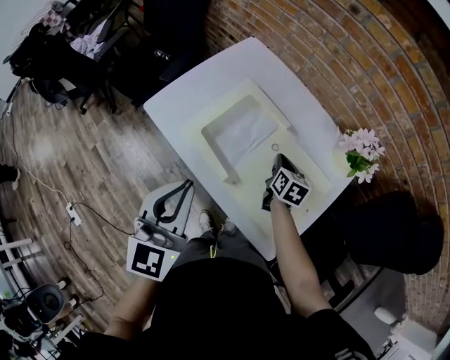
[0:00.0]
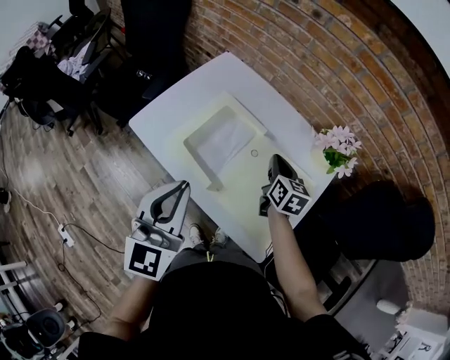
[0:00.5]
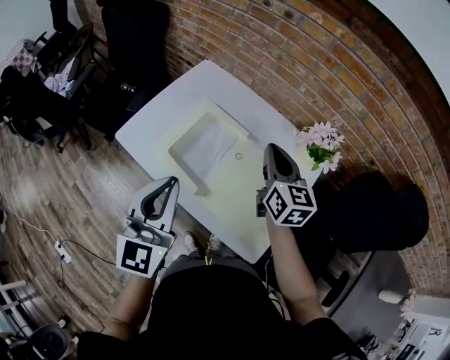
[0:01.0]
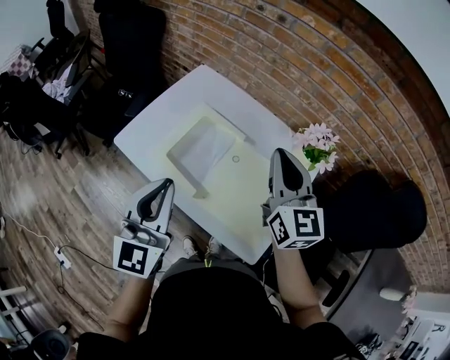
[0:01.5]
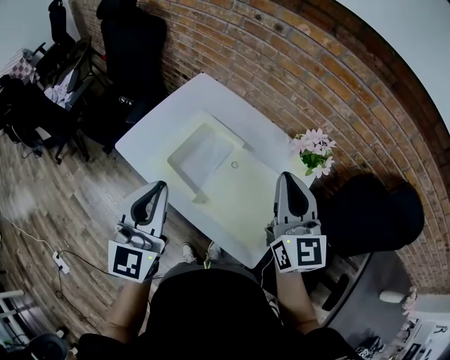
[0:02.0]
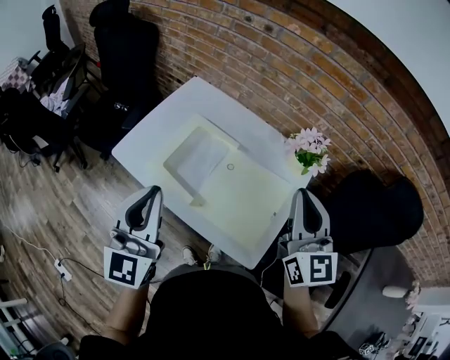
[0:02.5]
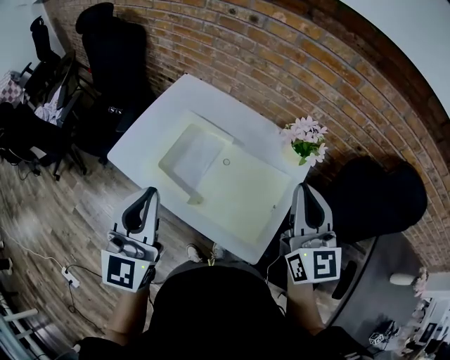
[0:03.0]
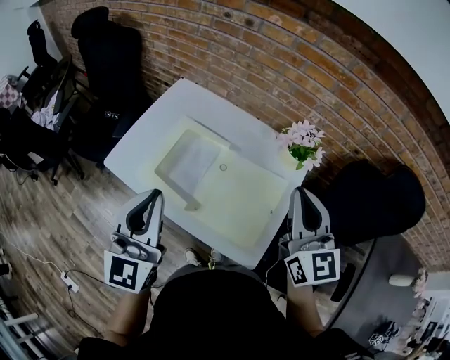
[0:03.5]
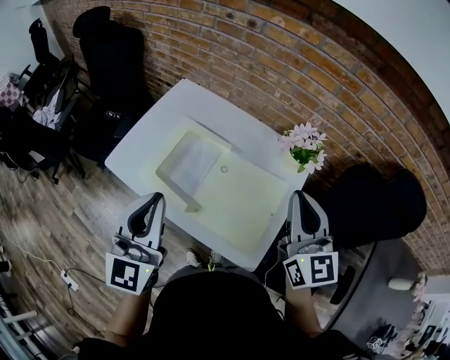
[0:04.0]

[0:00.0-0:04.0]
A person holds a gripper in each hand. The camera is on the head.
0:00.0 to 0:02.0: The left gripper travels upward by about 5 cm, while the right gripper goes some 35 cm upward, and angles its fingers upward, by some 40 degrees.
0:02.0 to 0:04.0: The right gripper heads to the right, covering approximately 5 cm.

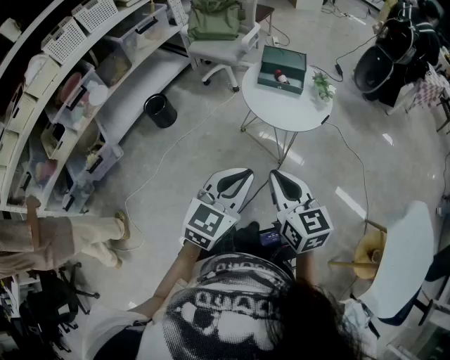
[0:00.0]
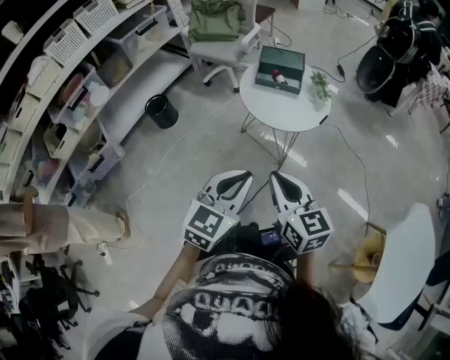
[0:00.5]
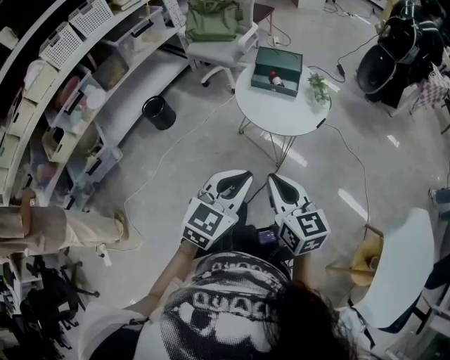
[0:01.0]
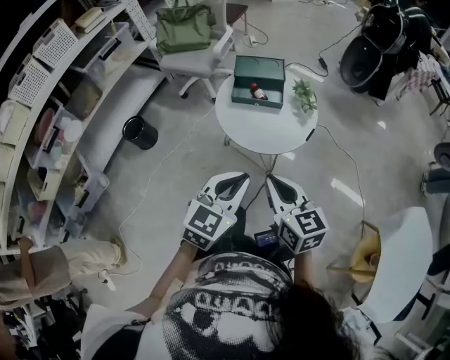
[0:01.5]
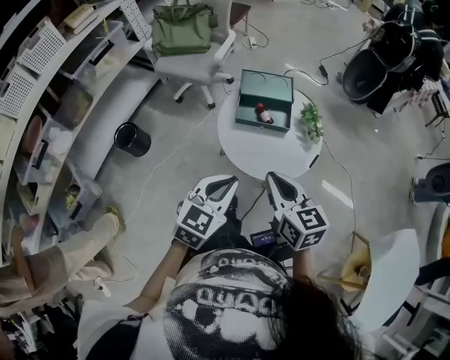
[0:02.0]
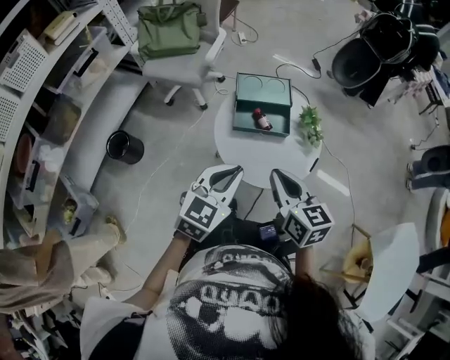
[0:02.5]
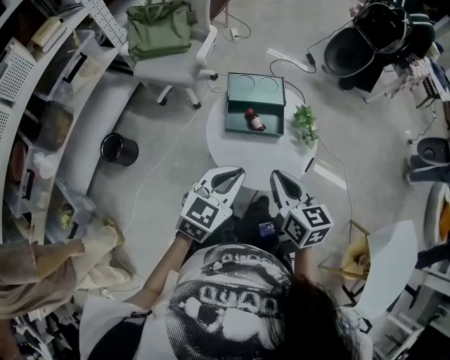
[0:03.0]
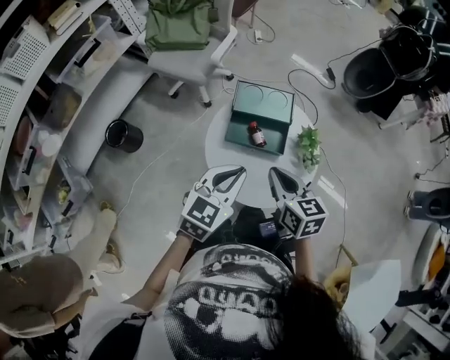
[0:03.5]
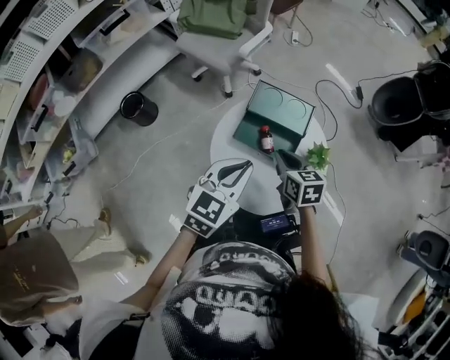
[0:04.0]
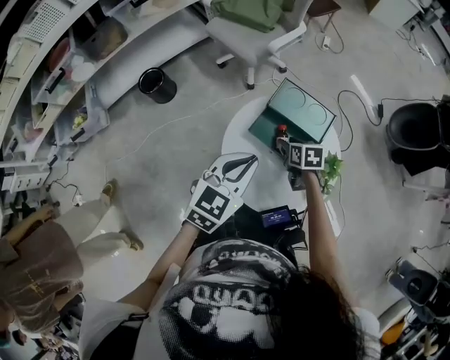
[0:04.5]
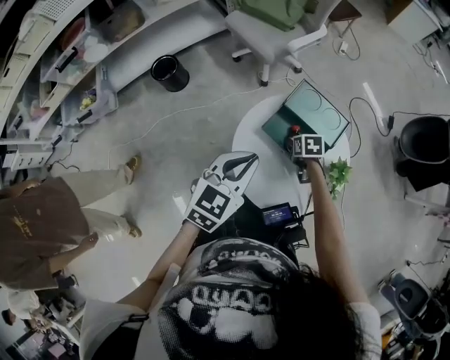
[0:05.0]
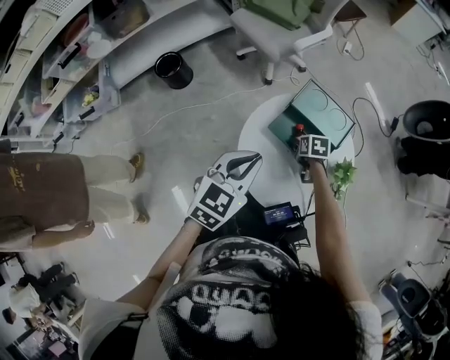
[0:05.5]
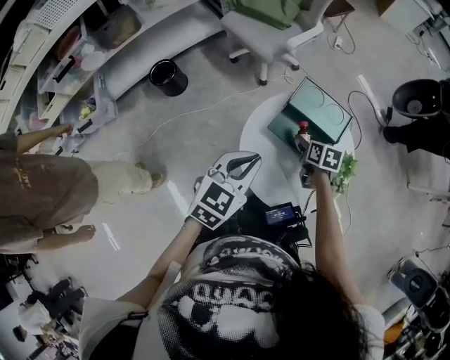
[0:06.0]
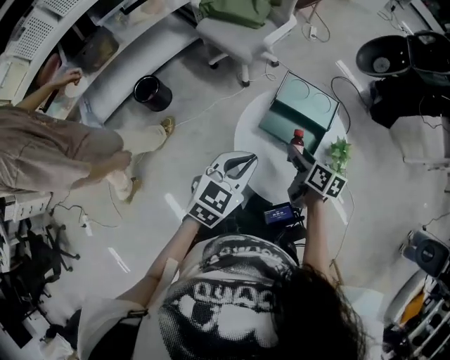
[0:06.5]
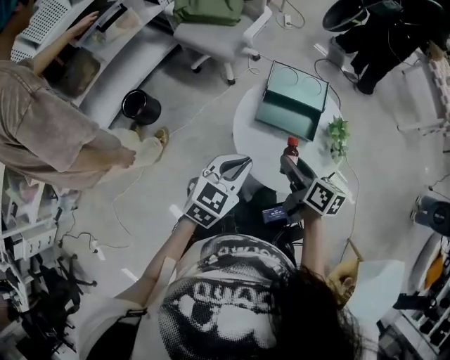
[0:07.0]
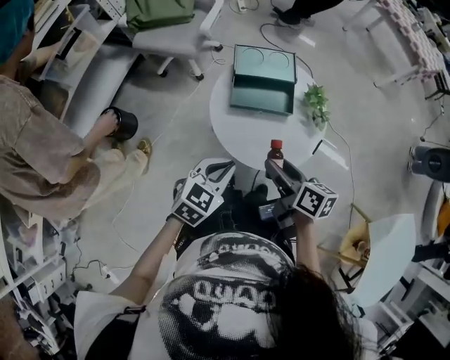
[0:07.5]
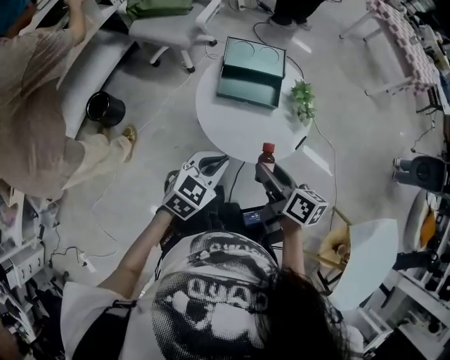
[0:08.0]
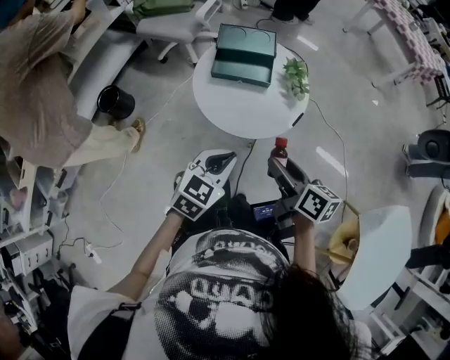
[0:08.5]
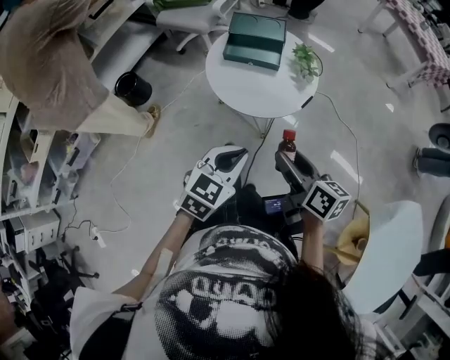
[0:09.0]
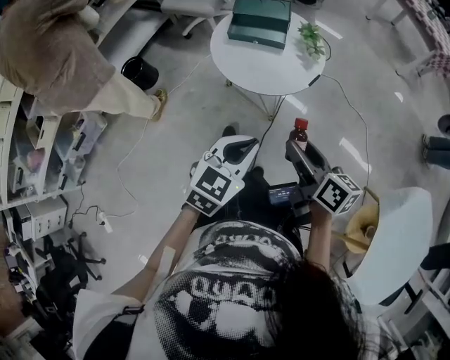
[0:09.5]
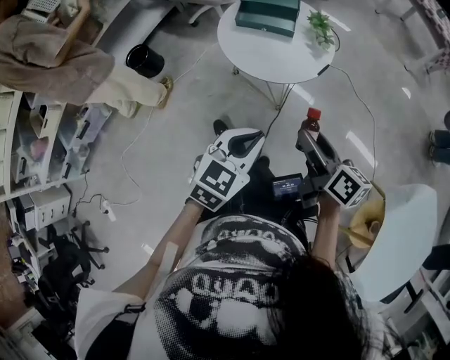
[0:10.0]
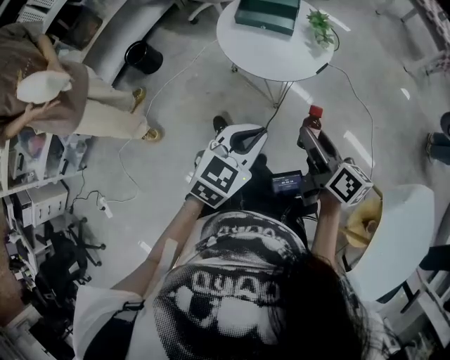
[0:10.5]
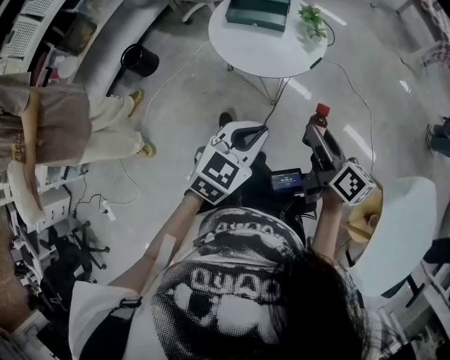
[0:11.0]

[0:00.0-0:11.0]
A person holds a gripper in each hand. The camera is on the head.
0:00.0 to 0:02.0: The grippers both shift forward by approximately 25 cm.
0:02.0 to 0:03.5: The grippers both shift forward by approximately 15 cm.
0:03.5 to 0:05.5: The right gripper goes some 25 cm downward, angles its fingers downward, by about 40 degrees, and opens. The left gripper turns by approximately 30 degrees.
0:05.5 to 0:07.5: The right gripper moves approximately 30 cm, and tilts its fingers approximately 40 degrees upward. Meanwhile the left gripper moves about 10 cm, and rotates about 40 degrees.
0:07.5 to 0:09.0: Both grippers travel together backward and to the right, about 25 cm.
0:09.0 to 0:11.0: The left gripper heads backward, covering some 5 cm; the right gripper goes approximately 5 cm to the right.

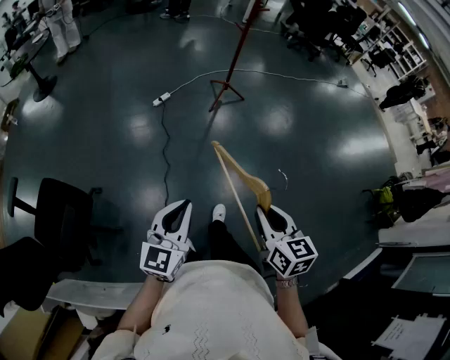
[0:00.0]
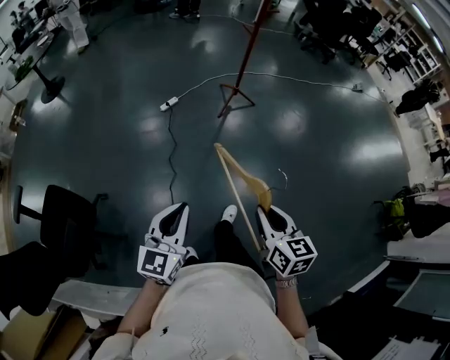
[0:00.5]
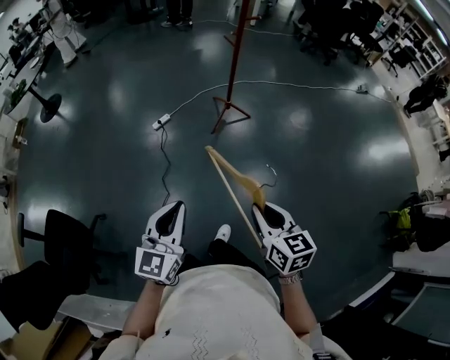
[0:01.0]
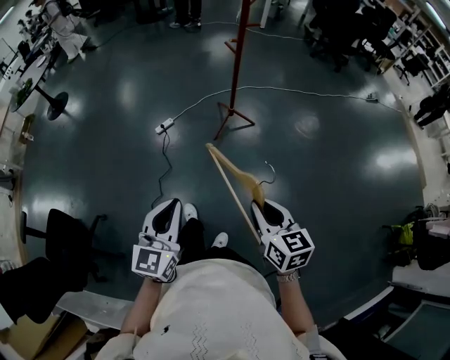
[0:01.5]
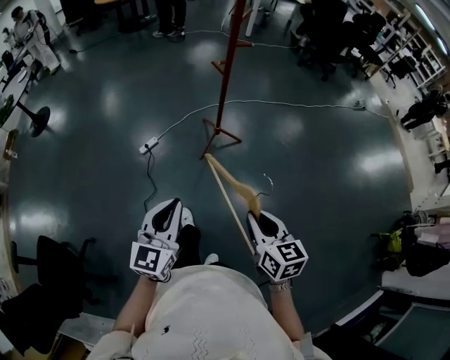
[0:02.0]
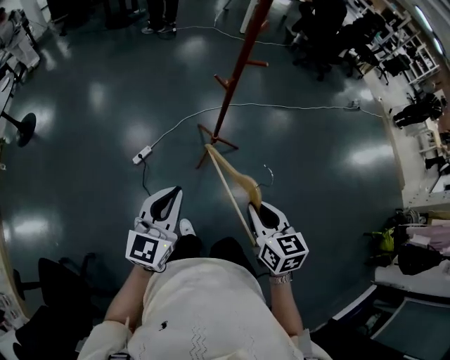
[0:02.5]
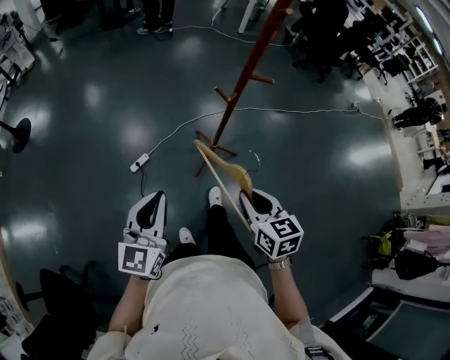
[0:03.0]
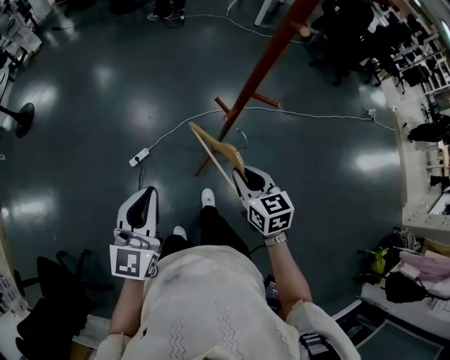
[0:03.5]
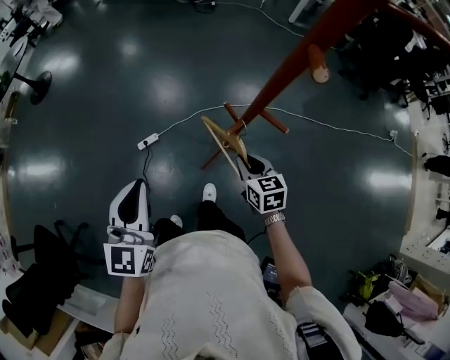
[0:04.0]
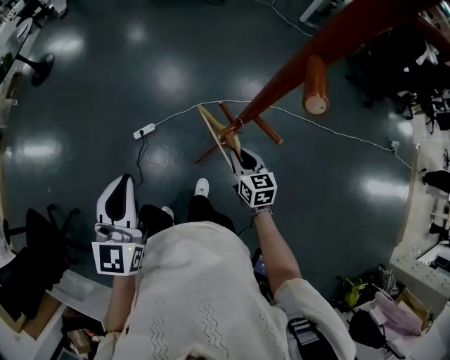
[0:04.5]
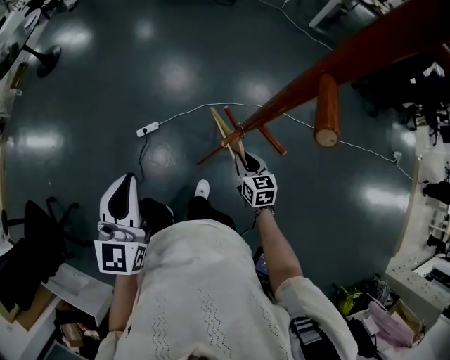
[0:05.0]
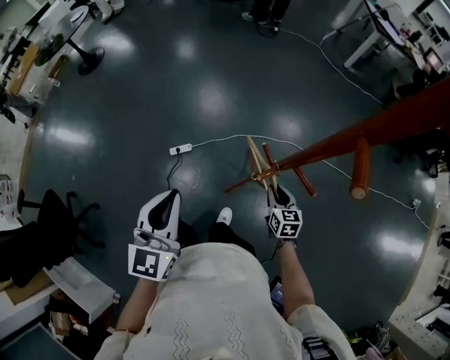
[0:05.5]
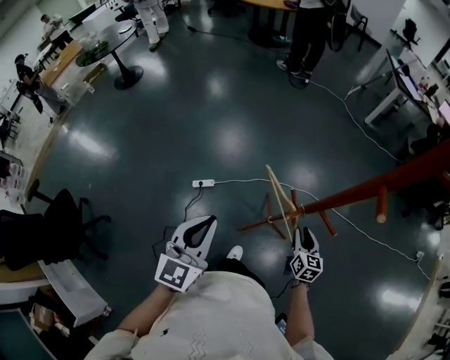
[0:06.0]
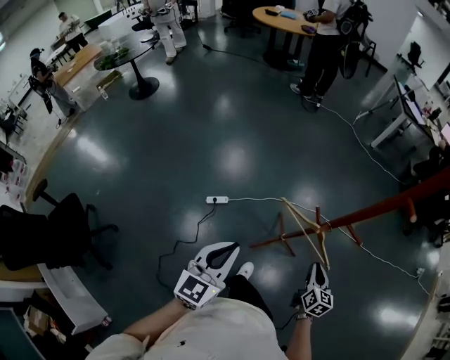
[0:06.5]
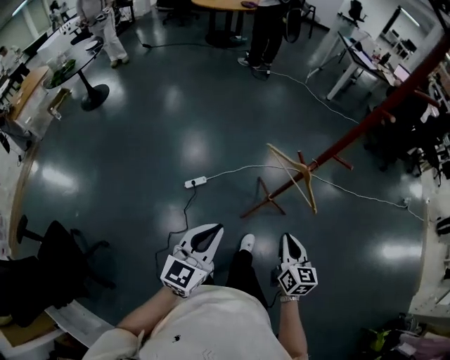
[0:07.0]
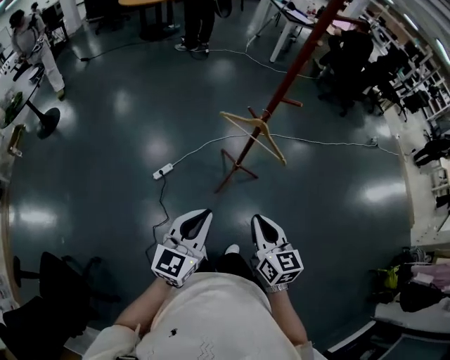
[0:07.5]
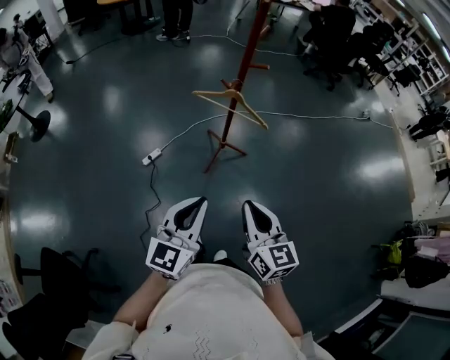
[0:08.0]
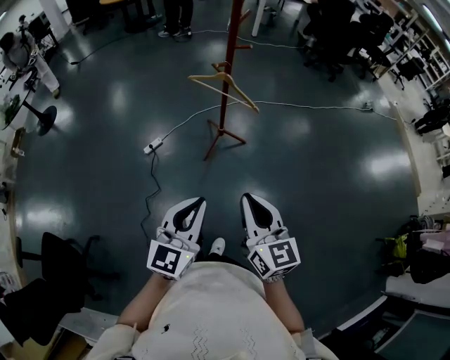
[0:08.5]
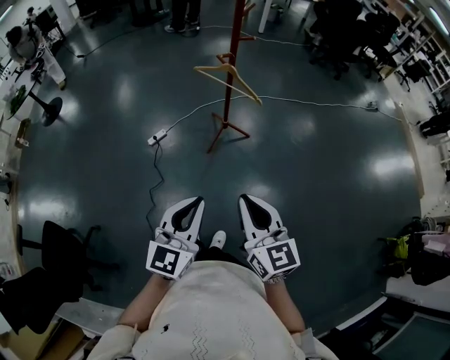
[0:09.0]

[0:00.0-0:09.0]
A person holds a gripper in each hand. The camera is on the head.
0:00.0 to 0:02.0: The pair of grippers is taken forward and to the right, about 50 cm.
0:02.0 to 0:04.5: The pair of grippers is taken some 50 cm. The left gripper turns by approximately 30 degrees; the right gripper changes its angle by roughly 20 degrees.
0:04.5 to 0:07.0: The right gripper travels backward, to the left and upward by approximately 30 cm; the left gripper travels to the left and backward by roughly 20 cm, and swivels roughly 20 degrees.
0:07.0 to 0:09.0: The right gripper shifts roughly 35 cm backward and upward, while the left gripper travels backward and to the right by roughly 35 cm.

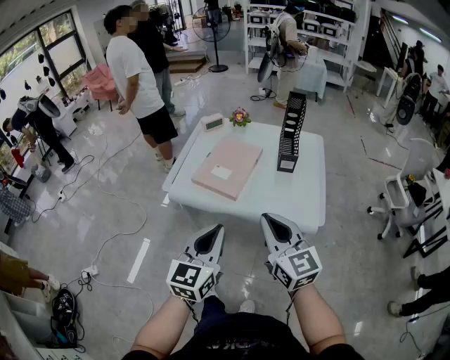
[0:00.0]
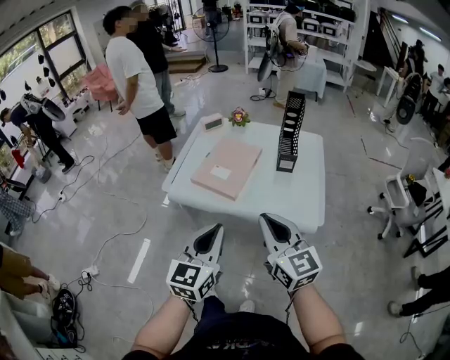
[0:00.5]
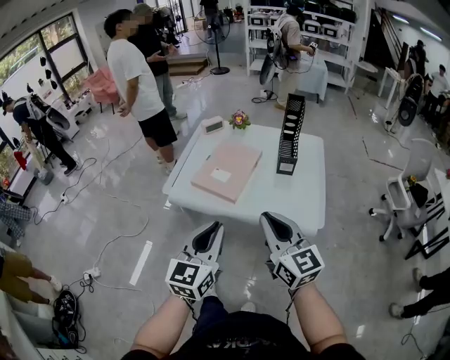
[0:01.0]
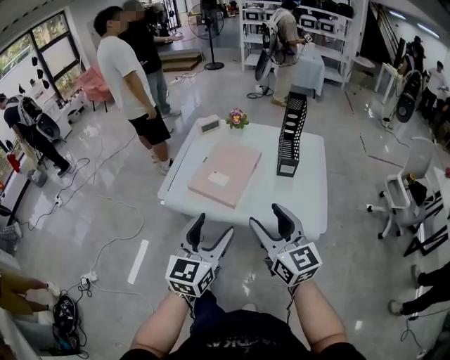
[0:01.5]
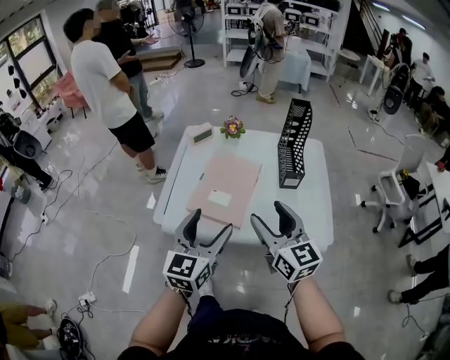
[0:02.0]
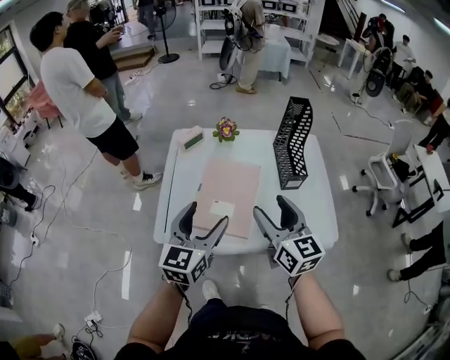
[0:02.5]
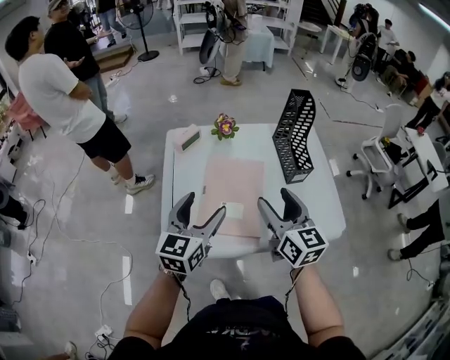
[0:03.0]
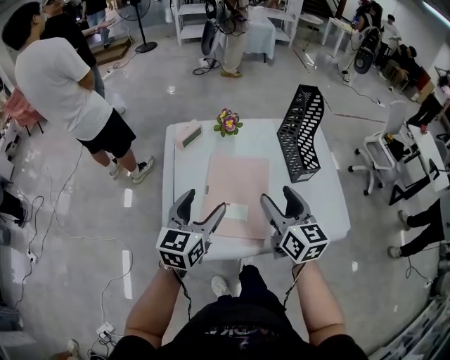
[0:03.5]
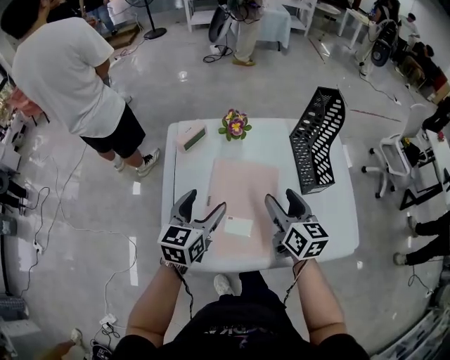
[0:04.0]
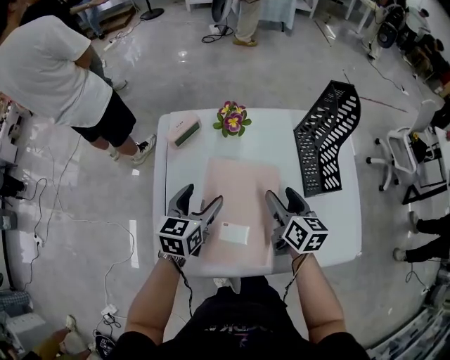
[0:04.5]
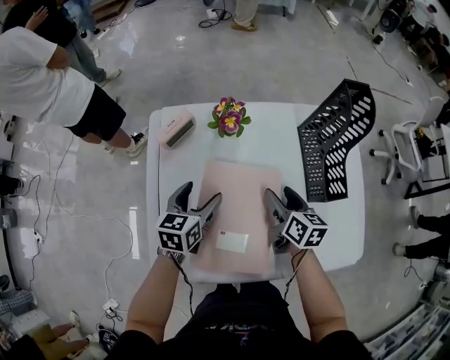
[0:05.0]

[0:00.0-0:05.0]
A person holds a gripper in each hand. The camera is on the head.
0:00.0 to 0:02.5: Both grippers move forward, some 25 cm. The right gripper opens; the left gripper opens its fingers.
0:02.5 to 0:05.0: The left gripper heads forward and downward, covering roughly 30 cm, and changes its angle by about 30 degrees. Meanwhile the right gripper travels downward and forward by about 35 cm, and changes its angle by roughly 40 degrees.
